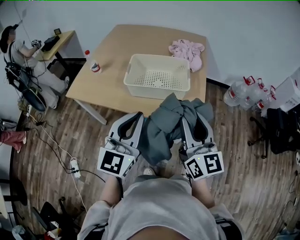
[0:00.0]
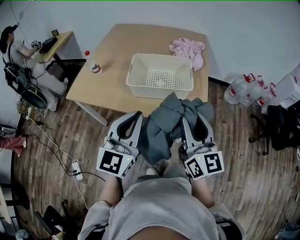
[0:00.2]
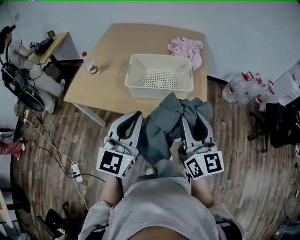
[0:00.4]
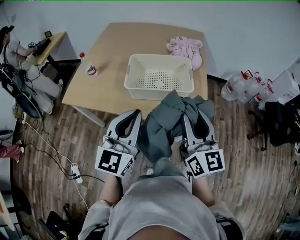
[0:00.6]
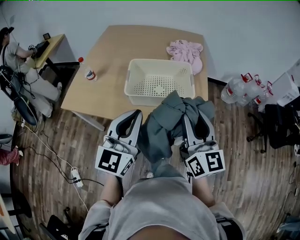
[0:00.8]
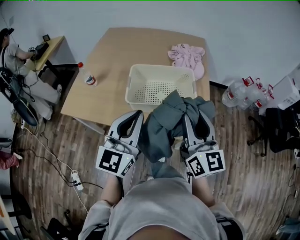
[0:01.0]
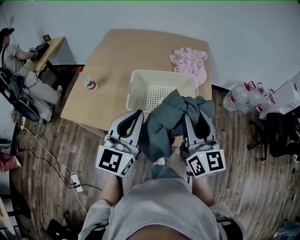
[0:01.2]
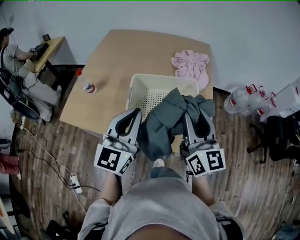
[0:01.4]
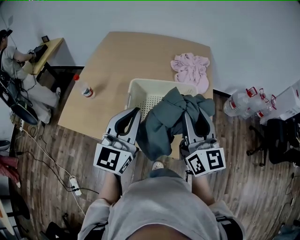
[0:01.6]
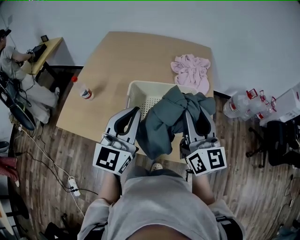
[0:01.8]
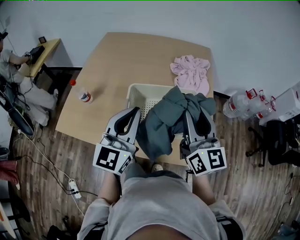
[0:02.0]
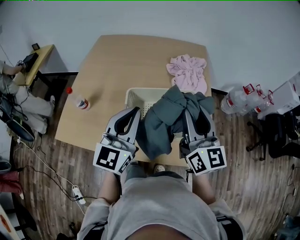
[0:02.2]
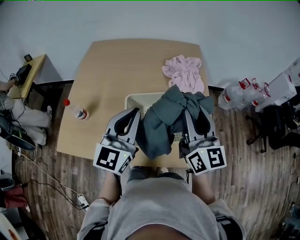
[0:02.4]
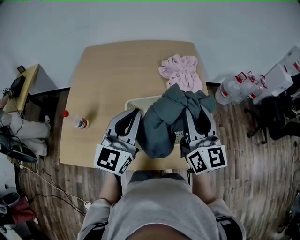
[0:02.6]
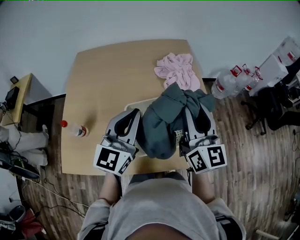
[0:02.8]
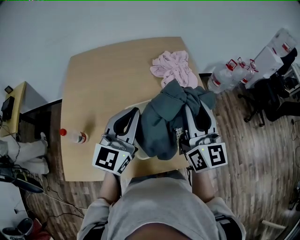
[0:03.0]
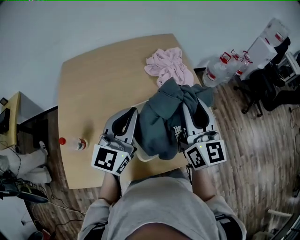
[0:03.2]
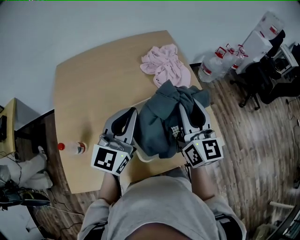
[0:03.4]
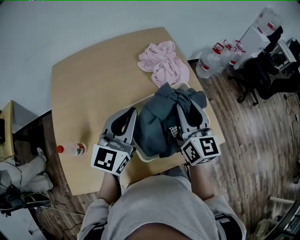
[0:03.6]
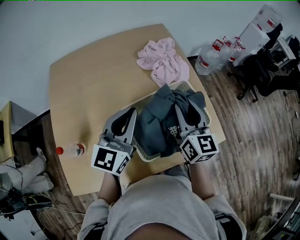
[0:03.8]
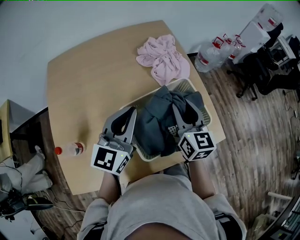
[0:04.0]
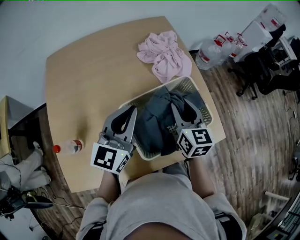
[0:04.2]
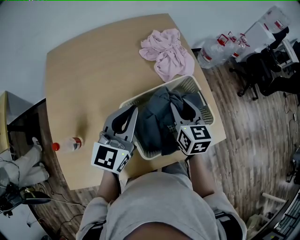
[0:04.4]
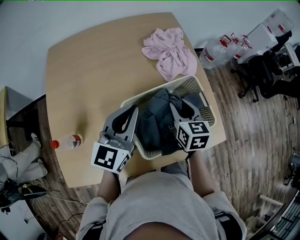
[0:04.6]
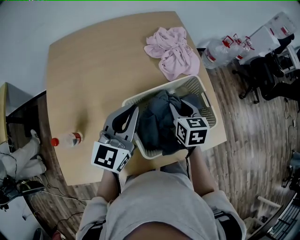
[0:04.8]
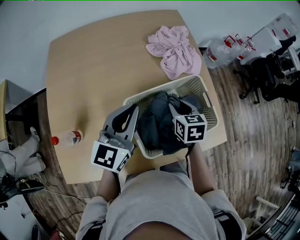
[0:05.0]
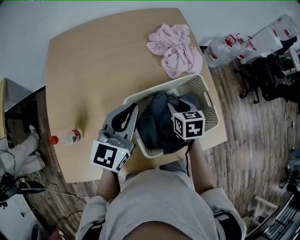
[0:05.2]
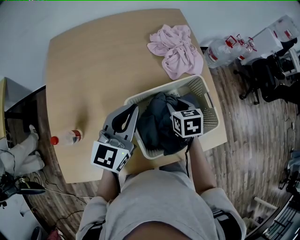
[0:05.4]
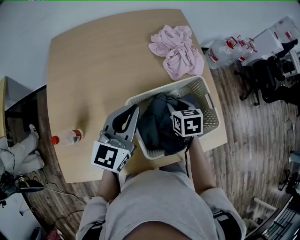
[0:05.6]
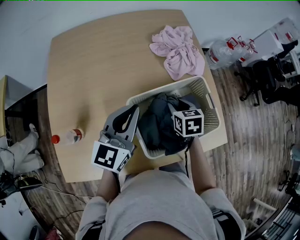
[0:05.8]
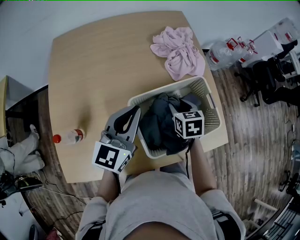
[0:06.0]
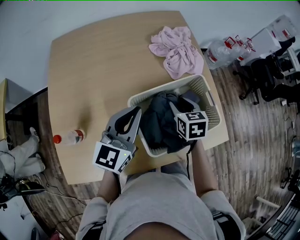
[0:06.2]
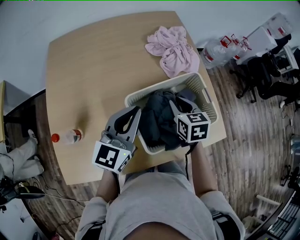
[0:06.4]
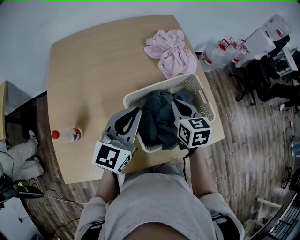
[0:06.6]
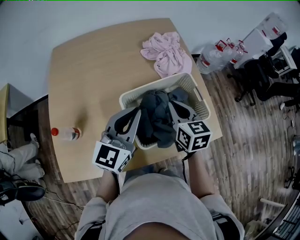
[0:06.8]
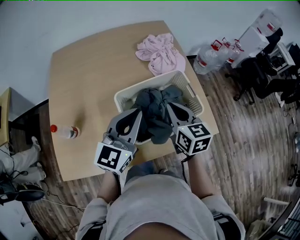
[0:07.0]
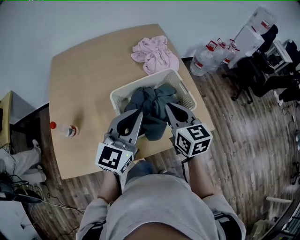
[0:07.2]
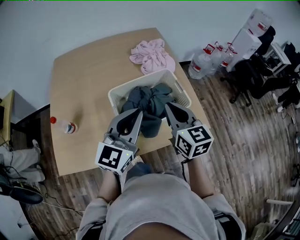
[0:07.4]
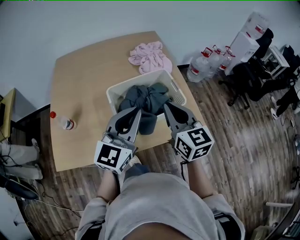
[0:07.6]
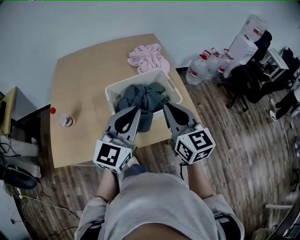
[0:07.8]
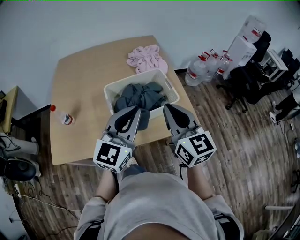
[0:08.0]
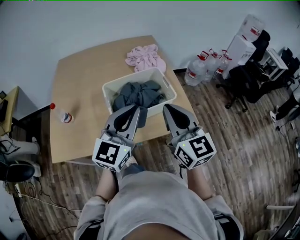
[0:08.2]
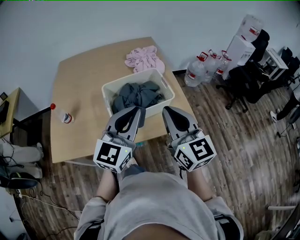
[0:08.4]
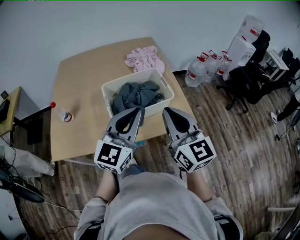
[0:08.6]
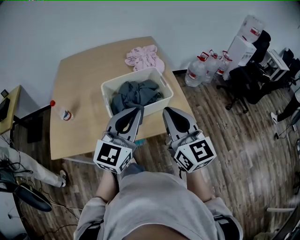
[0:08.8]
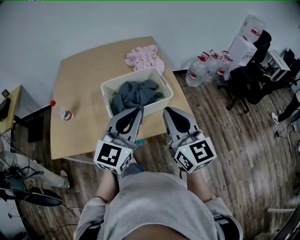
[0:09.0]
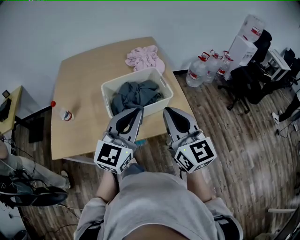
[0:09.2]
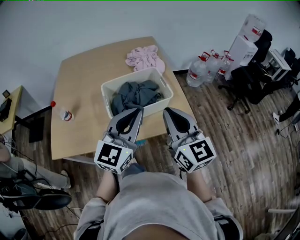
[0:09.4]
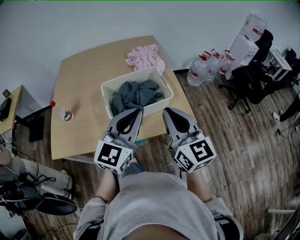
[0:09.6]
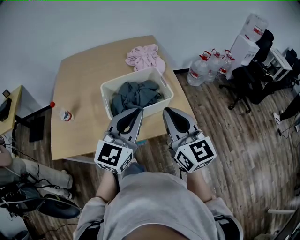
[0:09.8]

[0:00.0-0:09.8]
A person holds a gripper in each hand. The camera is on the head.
0:00.0 to 0:01.4: The right gripper moves forward, roughly 20 cm, while the left gripper shifts approximately 20 cm forward and to the left.
0:01.4 to 0:02.8: The two grippers go about 15 cm forward.
0:02.8 to 0:04.2: The right gripper moves downward, roughly 15 cm, and rotates some 30 degrees; the left gripper goes approximately 5 cm downward.
0:04.2 to 0:05.6: The right gripper travels downward by approximately 10 cm, and angles its fingers downward, by some 30 degrees.
0:05.6 to 0:07.0: The left gripper is displaced backward and to the right by approximately 10 cm; the right gripper goes some 15 cm upward and backward, rotates roughly 30 degrees, and closes up.
0:07.0 to 0:08.4: The left gripper moves backward, to the right and upward, roughly 20 cm, while the right gripper goes approximately 25 cm backward, upward and to the right, and rotates some 30 degrees.
0:08.4 to 0:09.8: There are only small adjustments of the grippers.

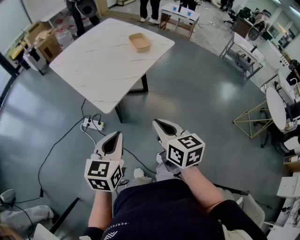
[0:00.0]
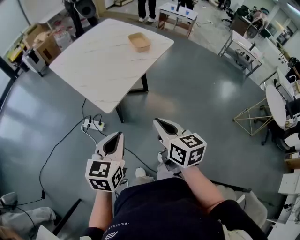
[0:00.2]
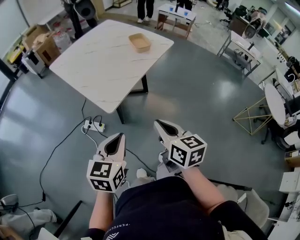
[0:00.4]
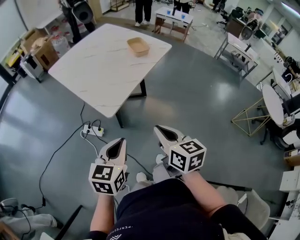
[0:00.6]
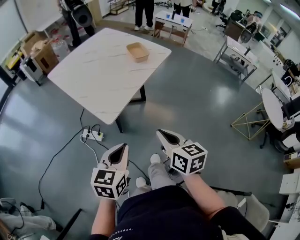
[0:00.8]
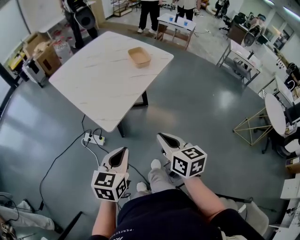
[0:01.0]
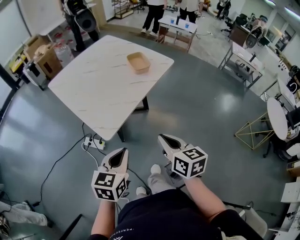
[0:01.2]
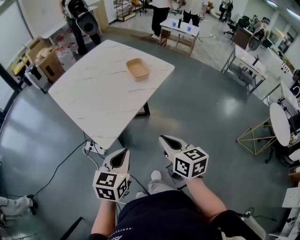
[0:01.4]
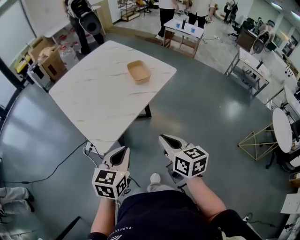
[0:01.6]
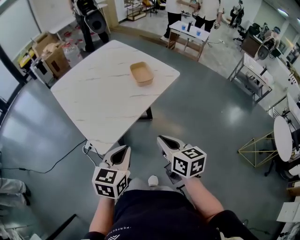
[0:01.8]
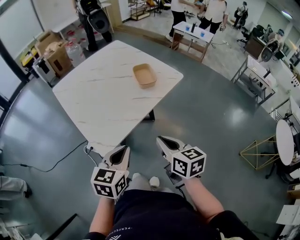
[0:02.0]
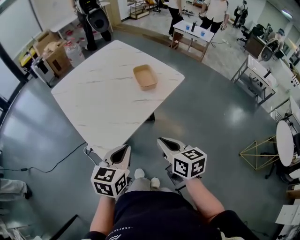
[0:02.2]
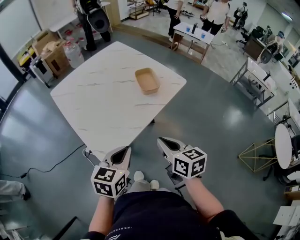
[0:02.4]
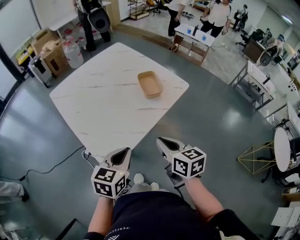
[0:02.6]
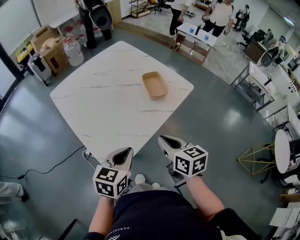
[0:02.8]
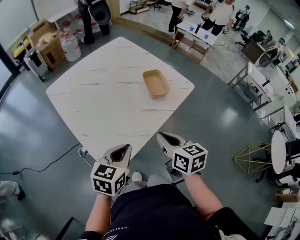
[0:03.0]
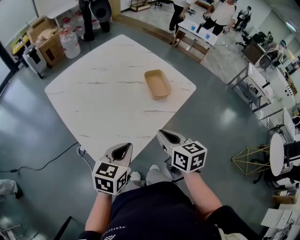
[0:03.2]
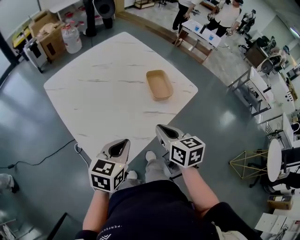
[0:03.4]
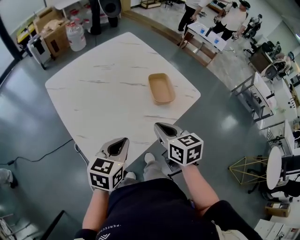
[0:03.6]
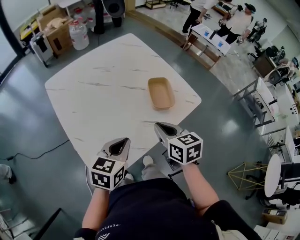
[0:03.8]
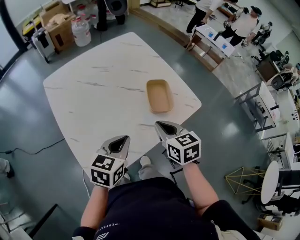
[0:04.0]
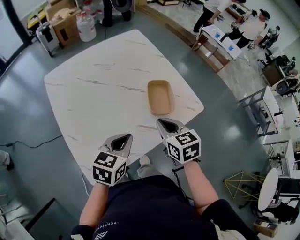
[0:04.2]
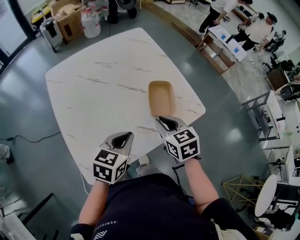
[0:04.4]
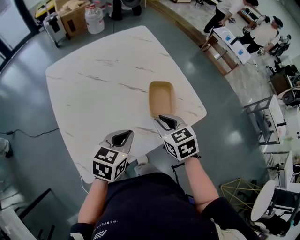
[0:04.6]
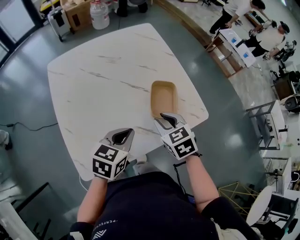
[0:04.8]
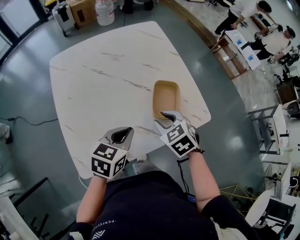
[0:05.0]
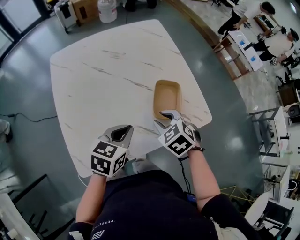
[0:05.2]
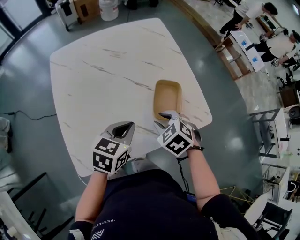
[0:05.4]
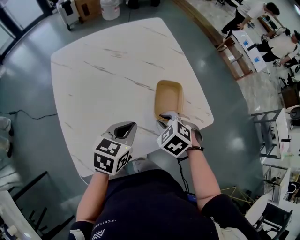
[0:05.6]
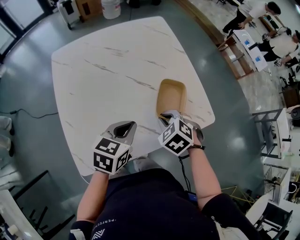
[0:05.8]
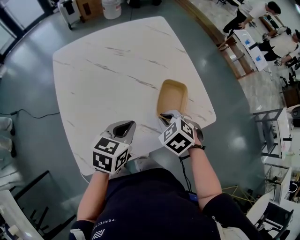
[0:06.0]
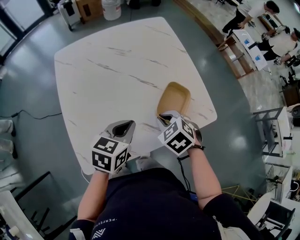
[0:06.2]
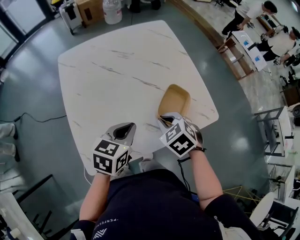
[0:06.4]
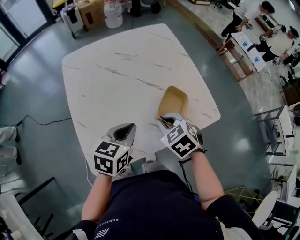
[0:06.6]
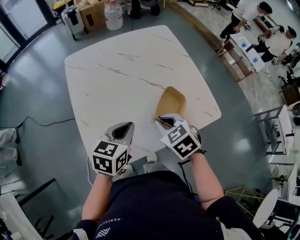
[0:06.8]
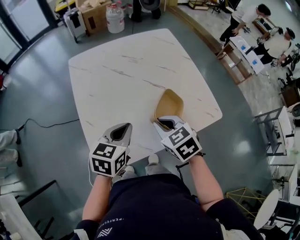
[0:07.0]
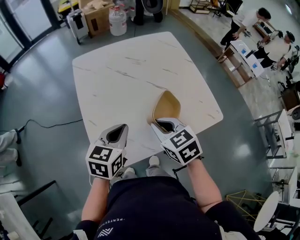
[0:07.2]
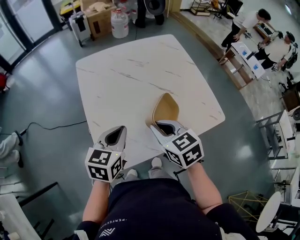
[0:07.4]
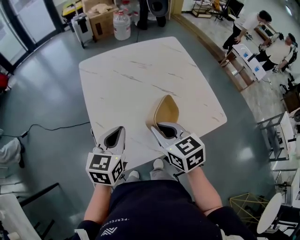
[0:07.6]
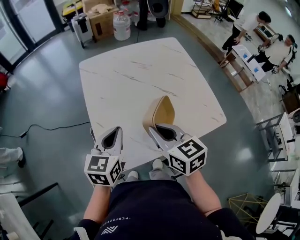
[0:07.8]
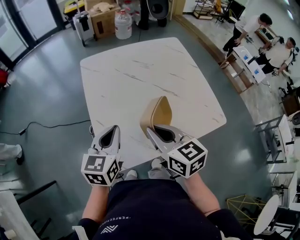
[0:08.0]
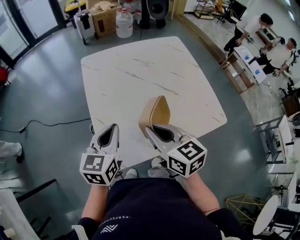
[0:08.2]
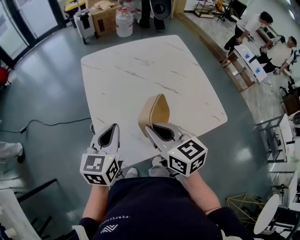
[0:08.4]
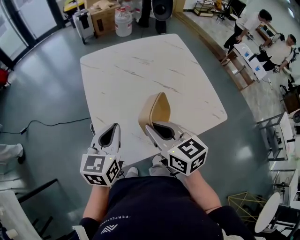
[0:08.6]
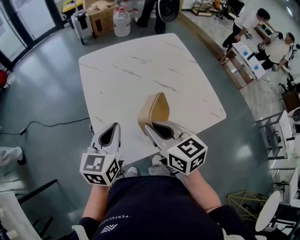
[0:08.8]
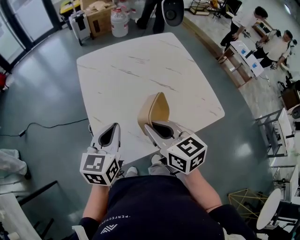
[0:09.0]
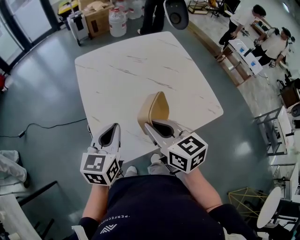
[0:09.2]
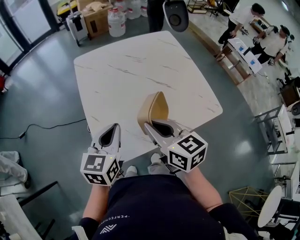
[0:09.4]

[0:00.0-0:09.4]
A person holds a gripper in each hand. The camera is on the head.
0:00.0 to 0:01.6: Both grippers travel together forward and to the right, roughly 15 cm.
0:01.6 to 0:03.2: The left gripper goes about 20 cm forward; the right gripper moves forward and to the left, approximately 20 cm.
0:03.2 to 0:04.8: The right gripper moves forward, approximately 20 cm, swivels roughly 40 degrees, and opens its fingers, while the left gripper goes approximately 20 cm forward and to the right.
0:04.8 to 0:06.2: The right gripper swivels some 20 degrees.
0:06.2 to 0:07.8: Both grippers travel together to the left and upward, approximately 20 cm. The right gripper angles its fingers upward, by roughly 40 degrees; the left gripper changes its angle by some 20 degrees.
0:07.8 to 0:09.4: There are only small adjustments of the grippers.

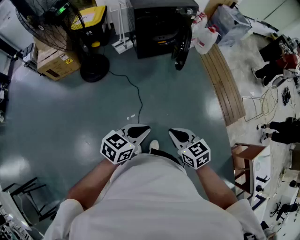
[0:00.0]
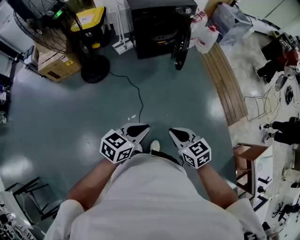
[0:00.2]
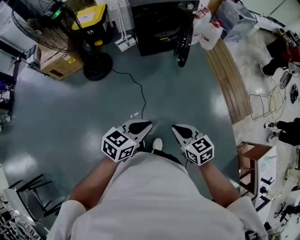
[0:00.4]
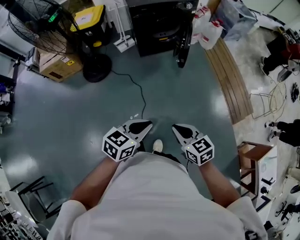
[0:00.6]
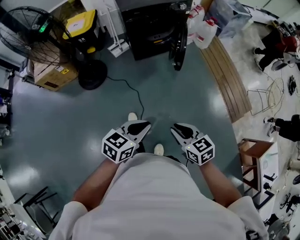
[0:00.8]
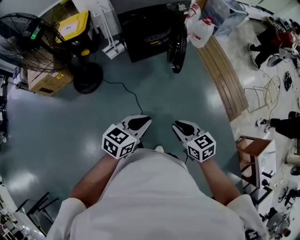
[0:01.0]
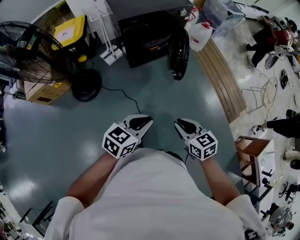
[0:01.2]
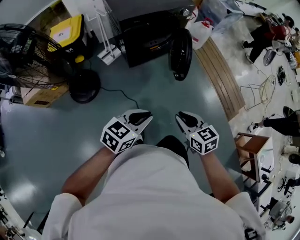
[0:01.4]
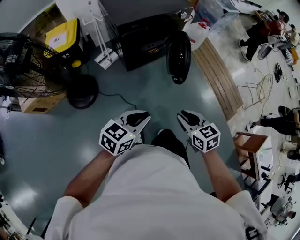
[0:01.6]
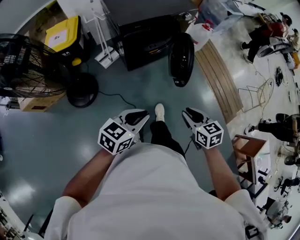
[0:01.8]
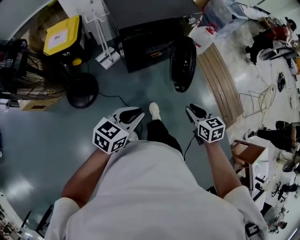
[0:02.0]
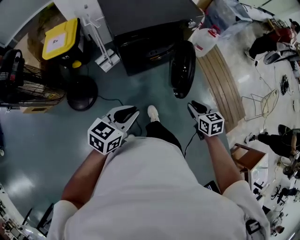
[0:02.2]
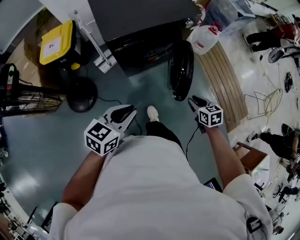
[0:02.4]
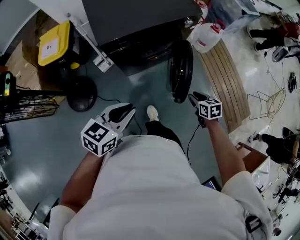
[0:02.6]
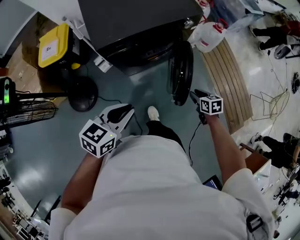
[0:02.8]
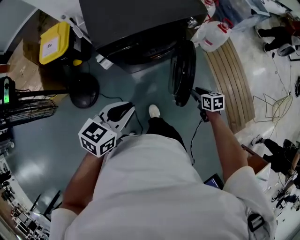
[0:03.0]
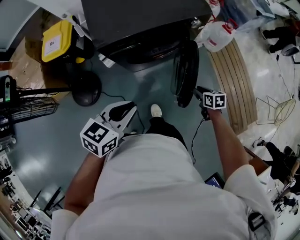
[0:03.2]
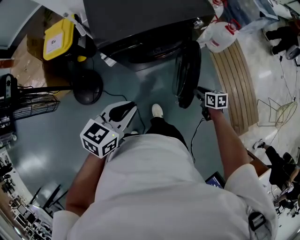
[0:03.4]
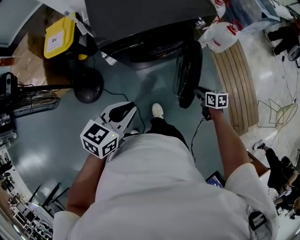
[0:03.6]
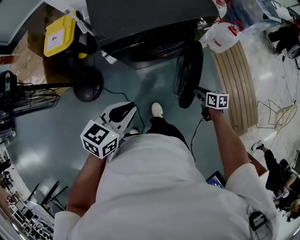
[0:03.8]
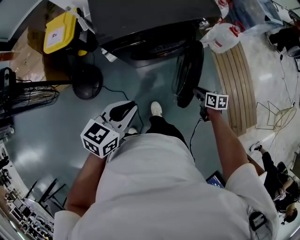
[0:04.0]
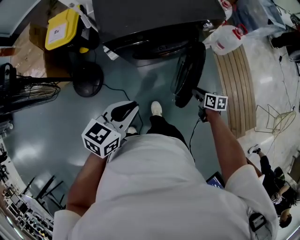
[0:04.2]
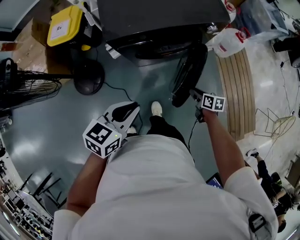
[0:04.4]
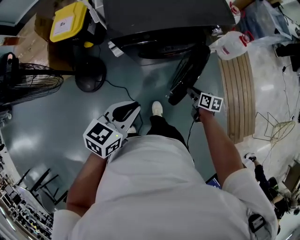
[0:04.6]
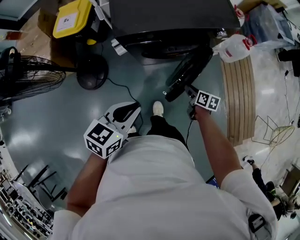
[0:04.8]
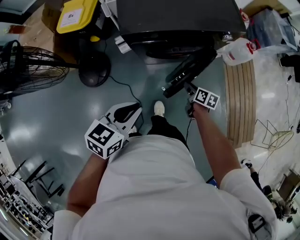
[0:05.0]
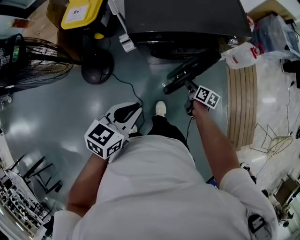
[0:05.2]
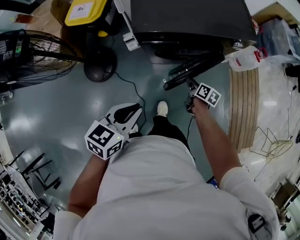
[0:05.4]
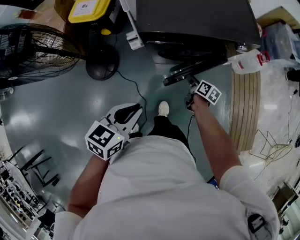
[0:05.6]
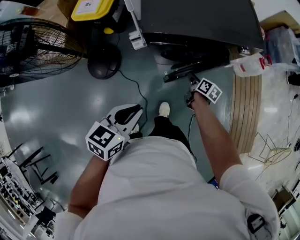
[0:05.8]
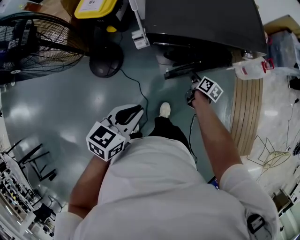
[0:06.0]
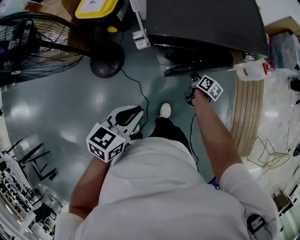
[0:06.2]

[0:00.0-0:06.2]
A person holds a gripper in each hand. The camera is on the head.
0:00.0 to 0:01.6: Both grippers travel together forward, about 30 cm. The right gripper opens its fingers.
0:01.6 to 0:03.2: The left gripper moves forward, some 30 cm. Meanwhile the right gripper travels forward and downward by roughly 50 cm, and swivels roughly 20 degrees.
0:03.2 to 0:04.6: The right gripper goes some 10 cm to the left.
0:04.6 to 0:06.2: The right gripper travels to the left and forward by approximately 20 cm; the left gripper goes approximately 10 cm to the left.
